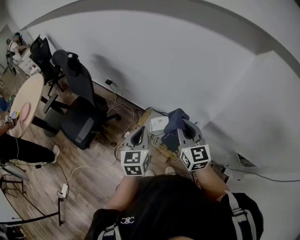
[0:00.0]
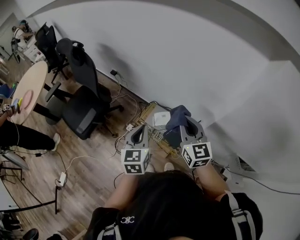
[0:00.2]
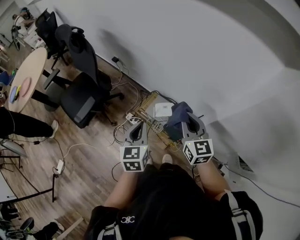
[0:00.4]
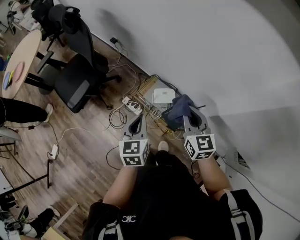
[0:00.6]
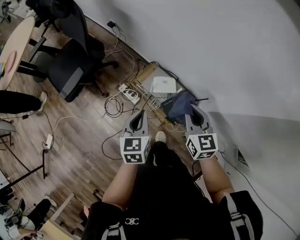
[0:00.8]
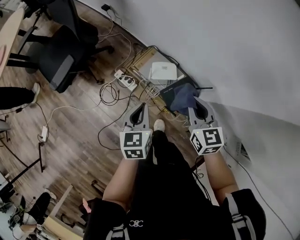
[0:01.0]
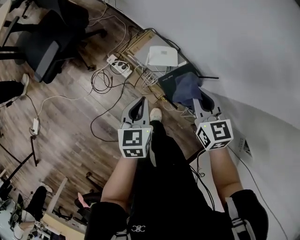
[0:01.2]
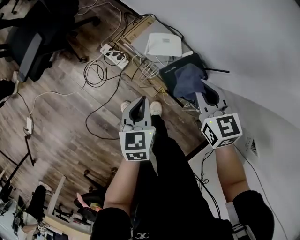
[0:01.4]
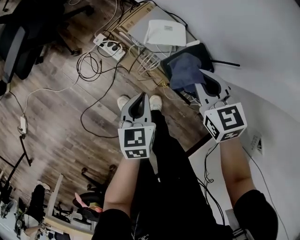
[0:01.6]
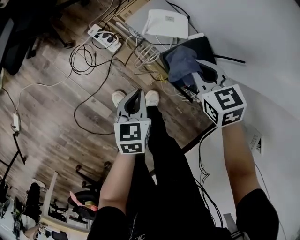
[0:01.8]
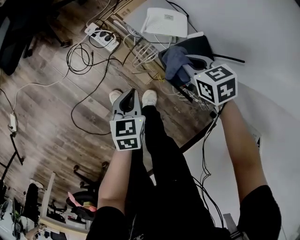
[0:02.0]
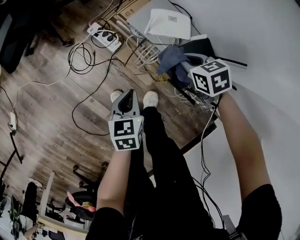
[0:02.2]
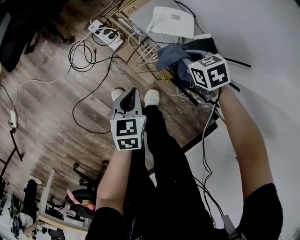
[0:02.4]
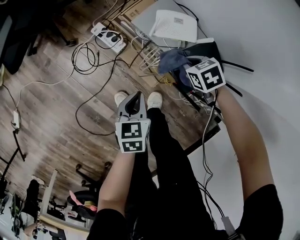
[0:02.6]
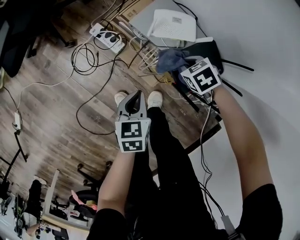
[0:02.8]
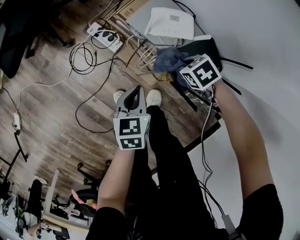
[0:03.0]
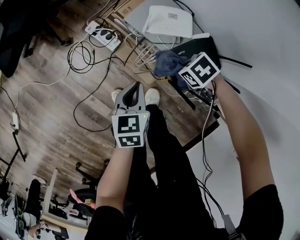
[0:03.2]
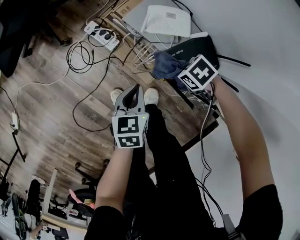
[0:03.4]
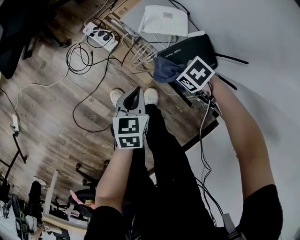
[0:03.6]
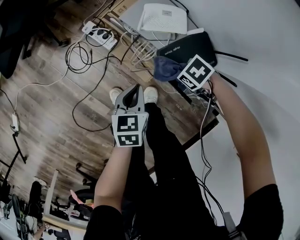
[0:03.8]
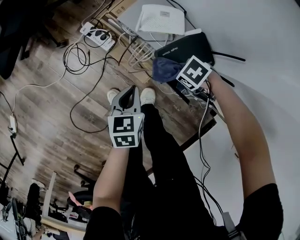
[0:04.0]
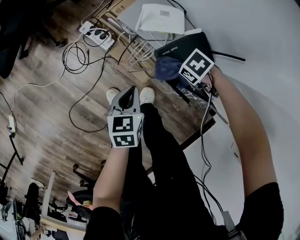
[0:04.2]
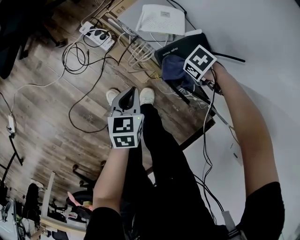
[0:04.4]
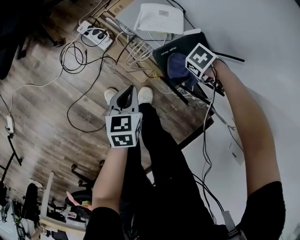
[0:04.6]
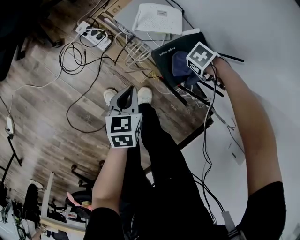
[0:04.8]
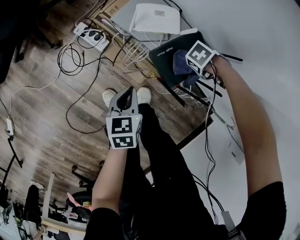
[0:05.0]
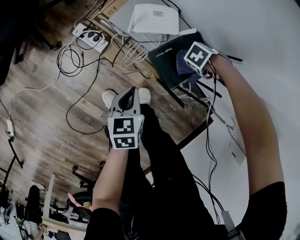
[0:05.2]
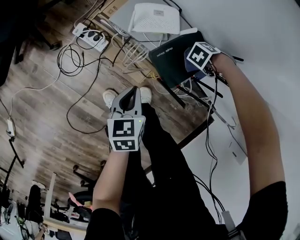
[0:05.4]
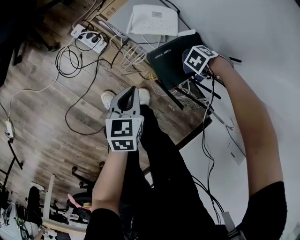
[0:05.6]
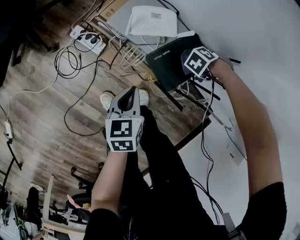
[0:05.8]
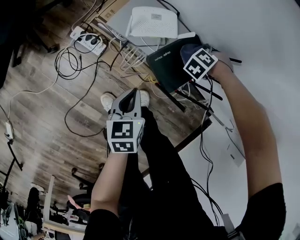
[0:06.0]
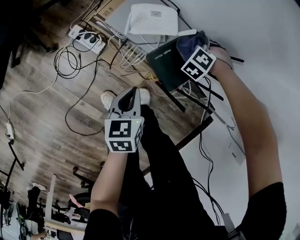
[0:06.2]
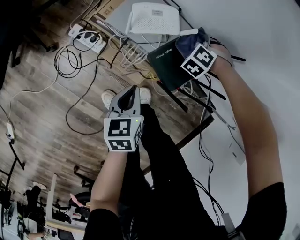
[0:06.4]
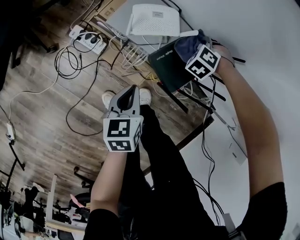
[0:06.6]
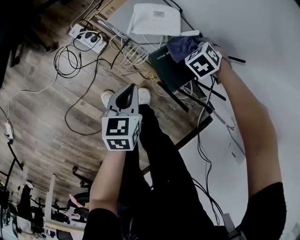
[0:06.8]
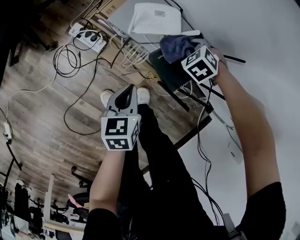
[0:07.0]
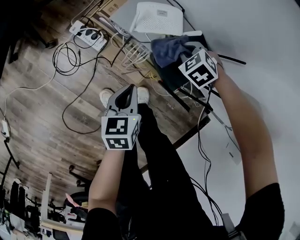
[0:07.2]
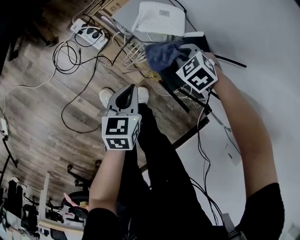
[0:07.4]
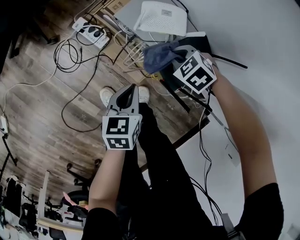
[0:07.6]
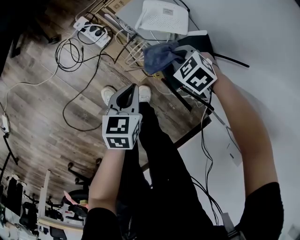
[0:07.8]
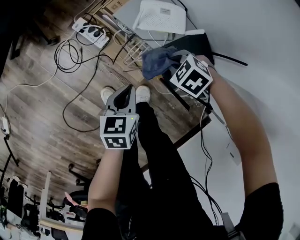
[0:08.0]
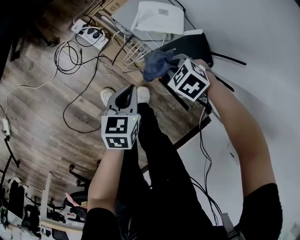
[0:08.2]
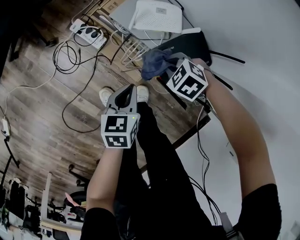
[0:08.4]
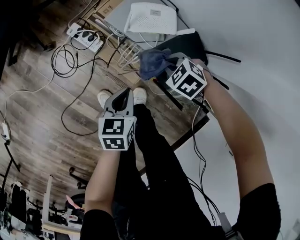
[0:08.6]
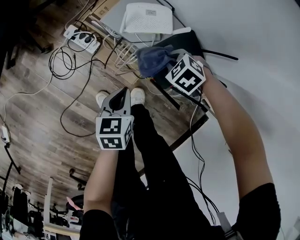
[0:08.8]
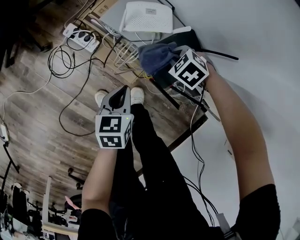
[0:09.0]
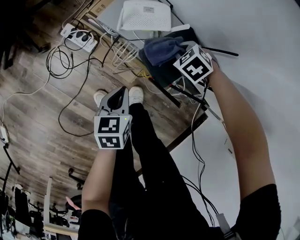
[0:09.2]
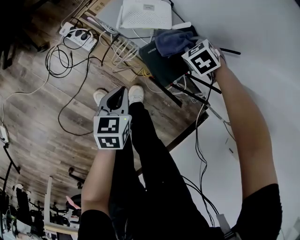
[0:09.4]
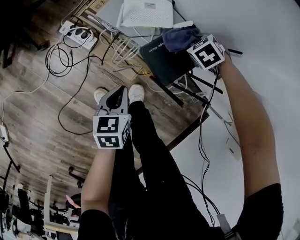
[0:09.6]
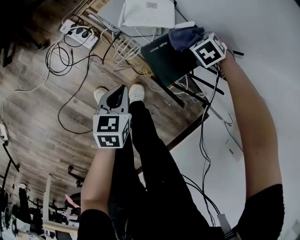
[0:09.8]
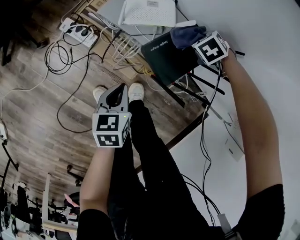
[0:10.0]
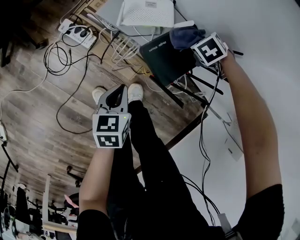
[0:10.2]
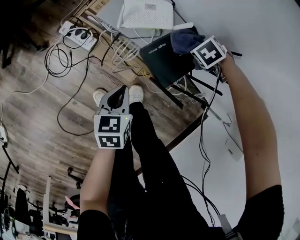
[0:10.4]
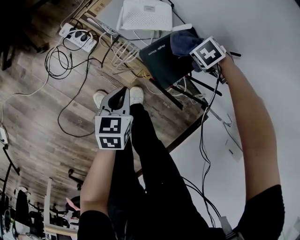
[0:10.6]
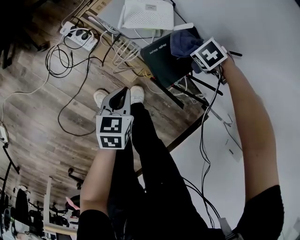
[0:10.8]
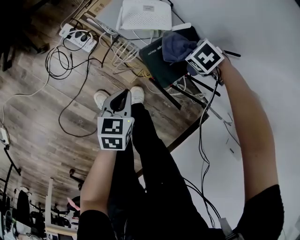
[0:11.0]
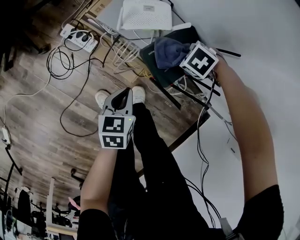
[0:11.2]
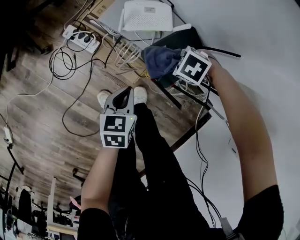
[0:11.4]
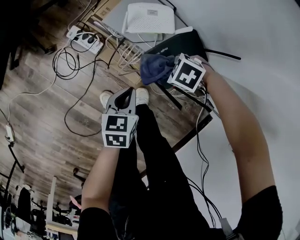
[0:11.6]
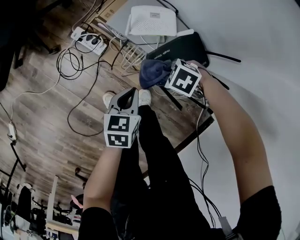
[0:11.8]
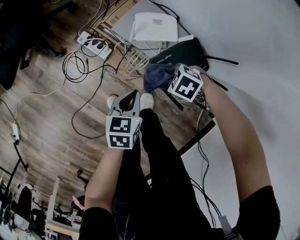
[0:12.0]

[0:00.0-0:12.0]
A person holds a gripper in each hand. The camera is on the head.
0:00.0 to 0:01.6: Both grippers move downward, roughly 40 cm. The left gripper rotates some 30 degrees. Meanwhile the right gripper tilts its fingers about 40 degrees downward.
0:01.6 to 0:03.0: The left gripper moves downward, some 10 cm. Meanwhile the right gripper moves downward, roughly 25 cm, and turns by roughly 40 degrees.
0:03.0 to 0:04.4: The right gripper moves approximately 10 cm, and changes its angle by approximately 30 degrees.
0:04.4 to 0:06.0: The right gripper changes place by some 15 cm, and swivels some 40 degrees.
0:06.0 to 0:07.6: The right gripper shifts by approximately 20 cm, and turns by about 40 degrees.
0:07.6 to 0:09.0: The right gripper changes place by about 5 cm.
0:09.0 to 0:10.4: The right gripper shifts by approximately 15 cm, and turns by some 20 degrees.
0:10.4 to 0:12.0: The right gripper shifts by about 20 cm, and turns by roughly 30 degrees.

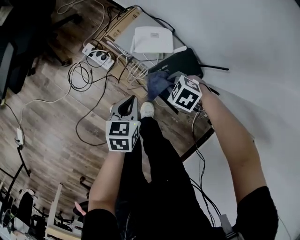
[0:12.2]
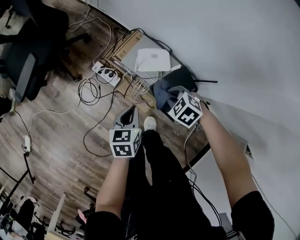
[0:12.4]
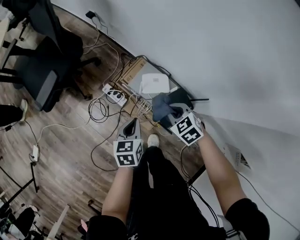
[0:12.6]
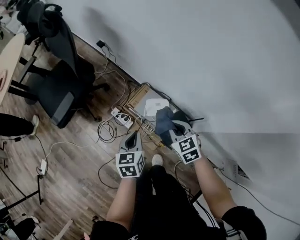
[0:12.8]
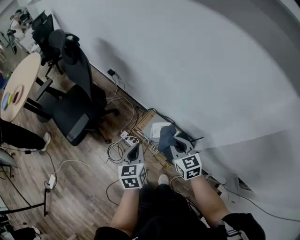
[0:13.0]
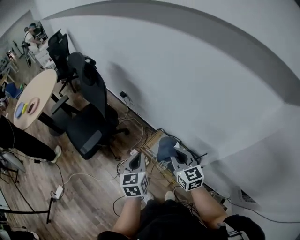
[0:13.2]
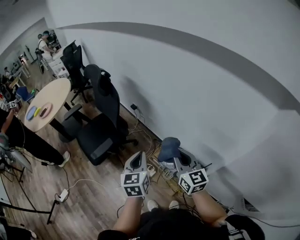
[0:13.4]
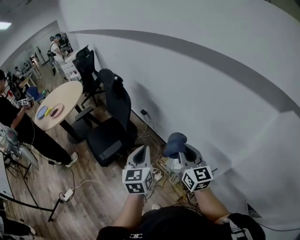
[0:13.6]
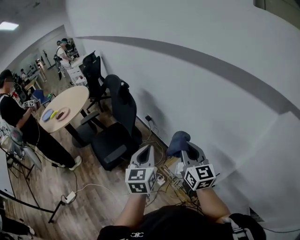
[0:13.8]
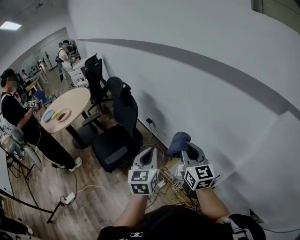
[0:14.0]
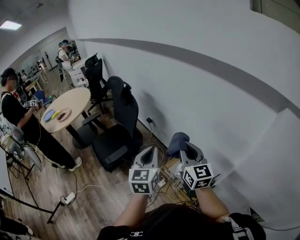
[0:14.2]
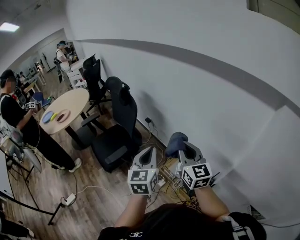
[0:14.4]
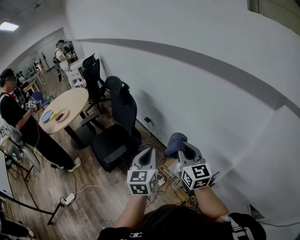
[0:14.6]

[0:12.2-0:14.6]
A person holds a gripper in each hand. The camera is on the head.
0:12.2 to 0:13.4: Both grippers travel together upward, roughly 60 cm. The right gripper angles its fingers upward, by approximately 70 degrees; the left gripper turns by approximately 40 degrees.
0:13.4 to 0:14.6: Both grippers travel together upward, roughly 10 cm.

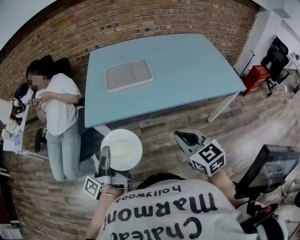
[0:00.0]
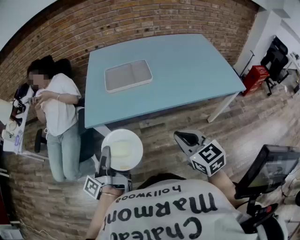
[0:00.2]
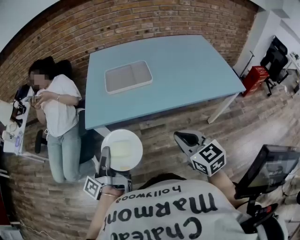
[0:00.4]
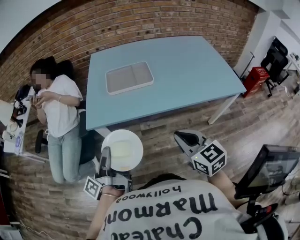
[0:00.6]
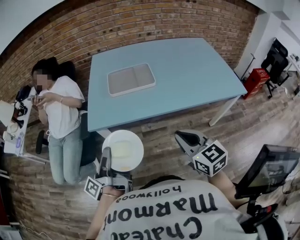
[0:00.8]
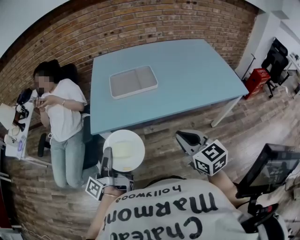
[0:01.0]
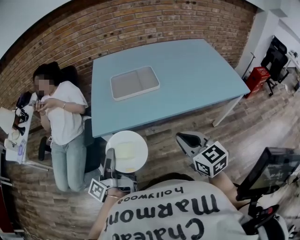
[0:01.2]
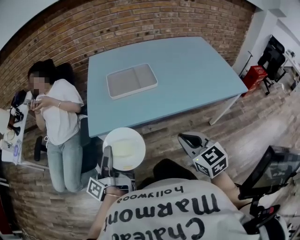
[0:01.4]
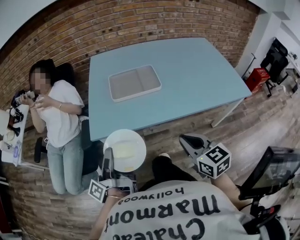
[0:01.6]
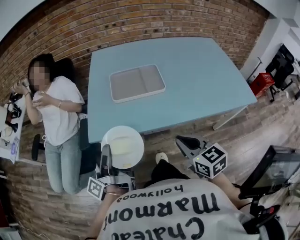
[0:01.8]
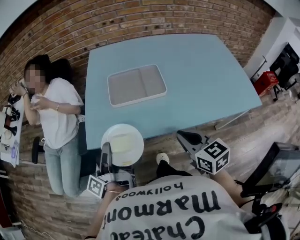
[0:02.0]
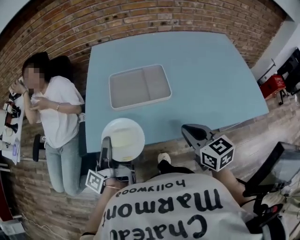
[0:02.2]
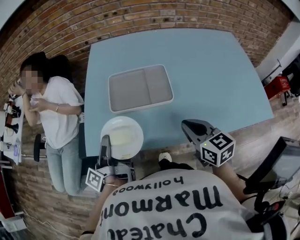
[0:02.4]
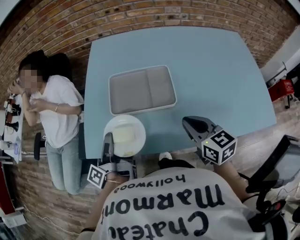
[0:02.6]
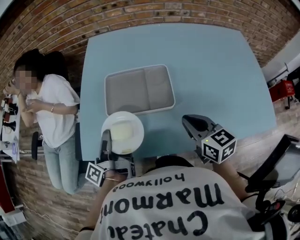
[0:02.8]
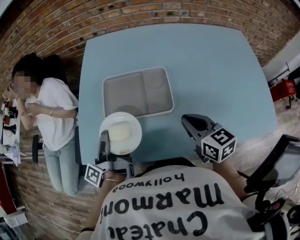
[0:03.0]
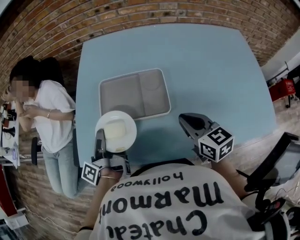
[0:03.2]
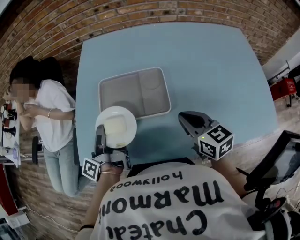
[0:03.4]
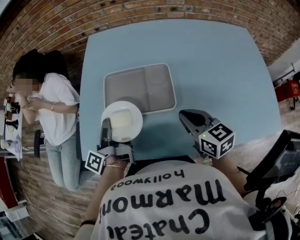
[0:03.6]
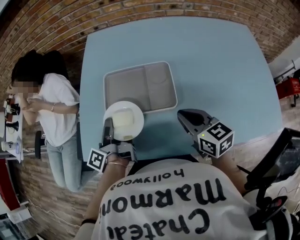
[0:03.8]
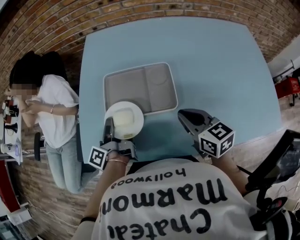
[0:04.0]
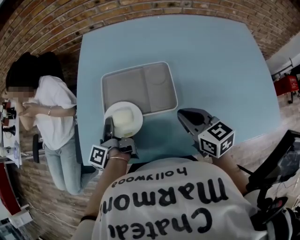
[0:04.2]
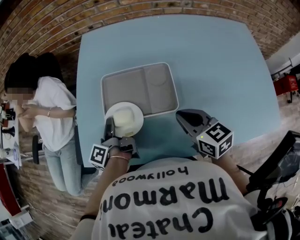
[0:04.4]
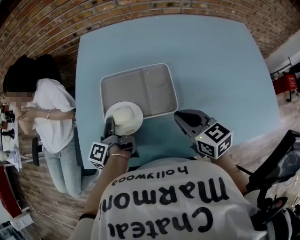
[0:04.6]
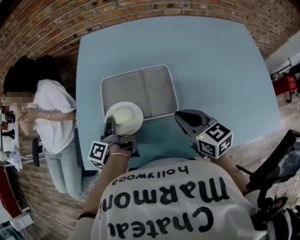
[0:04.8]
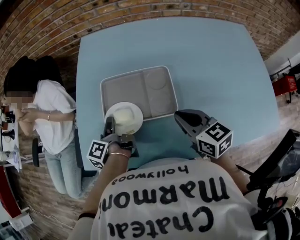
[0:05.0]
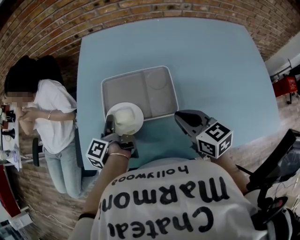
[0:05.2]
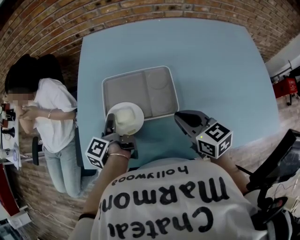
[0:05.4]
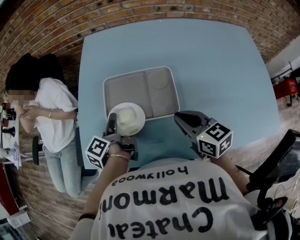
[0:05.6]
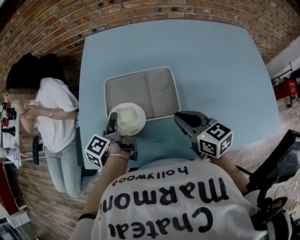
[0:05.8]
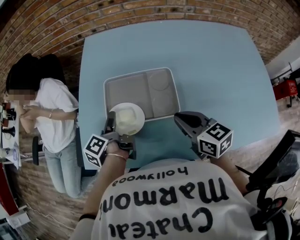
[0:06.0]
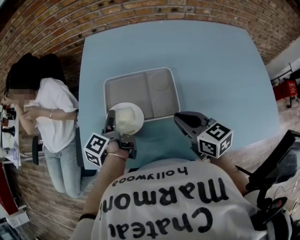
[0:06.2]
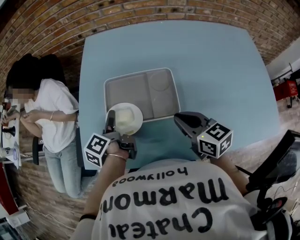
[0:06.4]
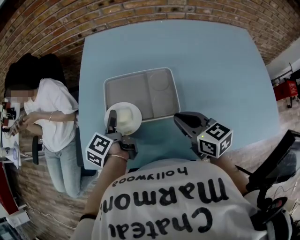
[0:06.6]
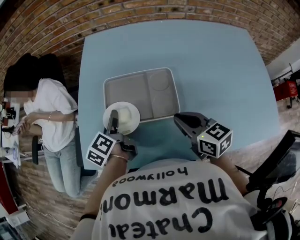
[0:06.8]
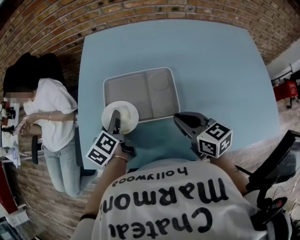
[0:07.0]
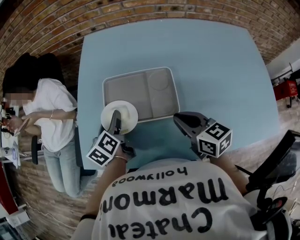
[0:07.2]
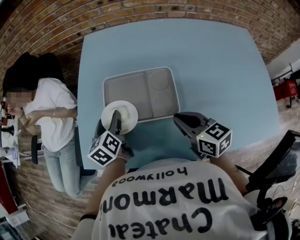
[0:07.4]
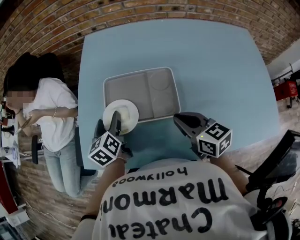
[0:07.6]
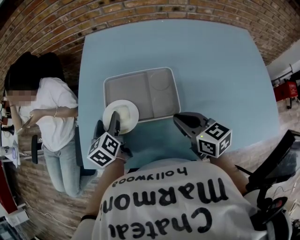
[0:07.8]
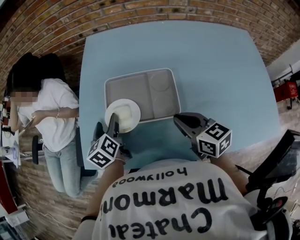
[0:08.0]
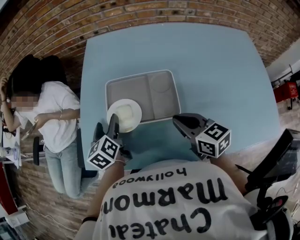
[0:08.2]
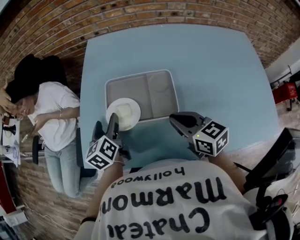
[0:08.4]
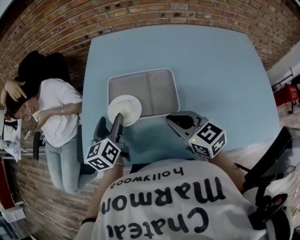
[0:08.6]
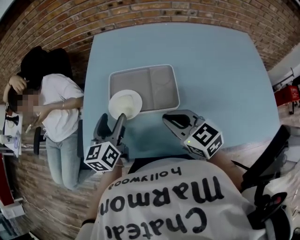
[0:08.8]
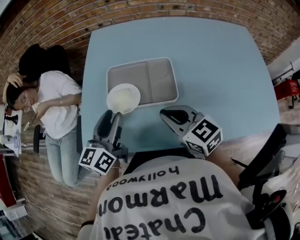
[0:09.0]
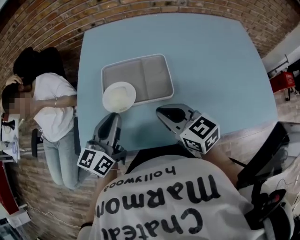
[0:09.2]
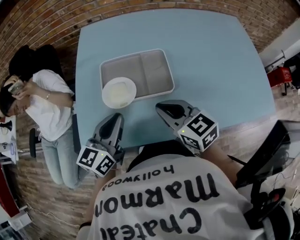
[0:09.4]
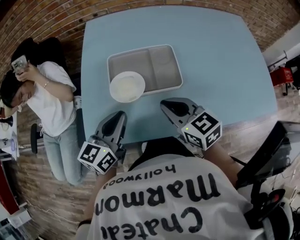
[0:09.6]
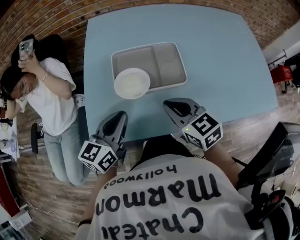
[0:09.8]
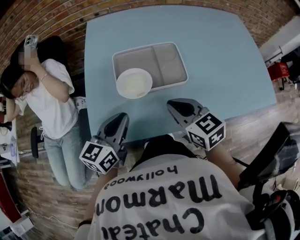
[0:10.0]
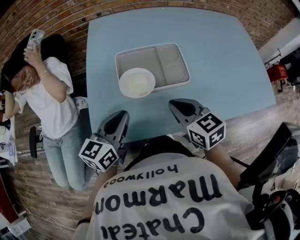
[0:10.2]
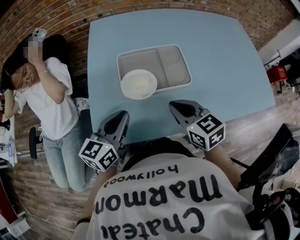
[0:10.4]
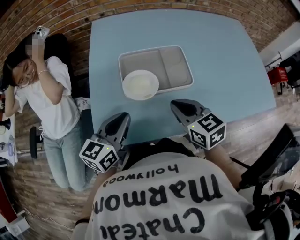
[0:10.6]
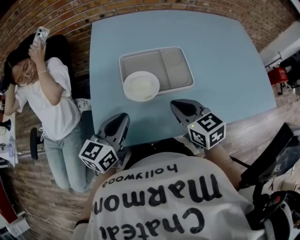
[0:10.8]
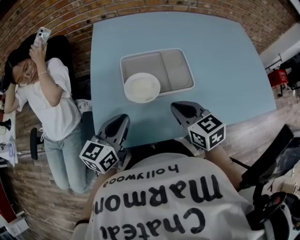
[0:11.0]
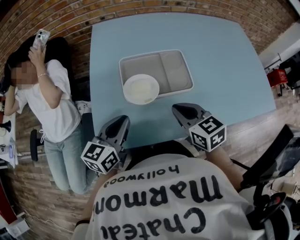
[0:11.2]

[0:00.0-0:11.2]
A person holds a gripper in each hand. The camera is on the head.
0:00.0 to 0:01.6: The two grippers go some 5 cm forward.
0:01.6 to 0:03.2: Both grippers move forward and to the right, some 35 cm.
0:03.2 to 0:04.8: The right gripper shifts by roughly 5 cm. Meanwhile the left gripper is displaced downward and forward by some 10 cm, and changes its angle by some 20 degrees.
0:04.8 to 0:06.4: The left gripper opens.
0:06.4 to 0:08.0: The left gripper twists about 40 degrees clockwise, seen from behind.
0:08.0 to 0:09.6: The right gripper heads to the left, covering roughly 10 cm. The left gripper moves backward and upward, approximately 15 cm, turns by roughly 40 degrees, and closes up.
0:09.6 to 0:11.2: The left gripper travels to the left by roughly 5 cm.
